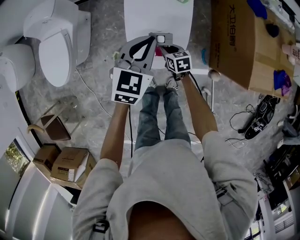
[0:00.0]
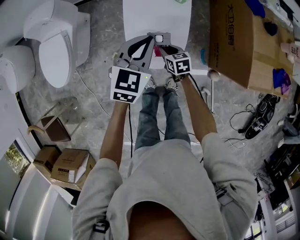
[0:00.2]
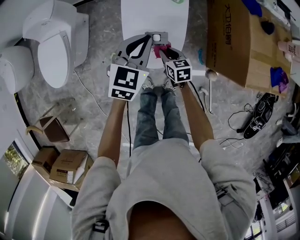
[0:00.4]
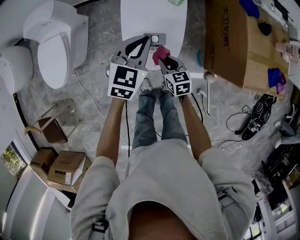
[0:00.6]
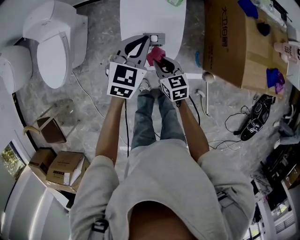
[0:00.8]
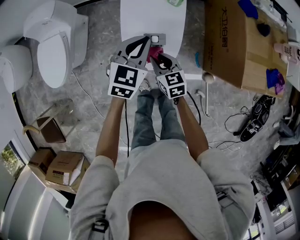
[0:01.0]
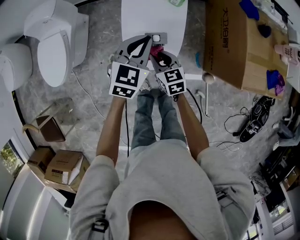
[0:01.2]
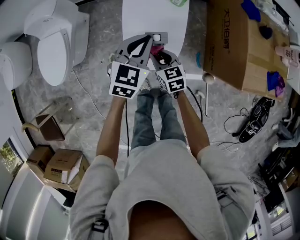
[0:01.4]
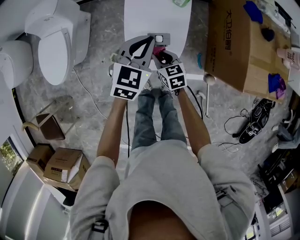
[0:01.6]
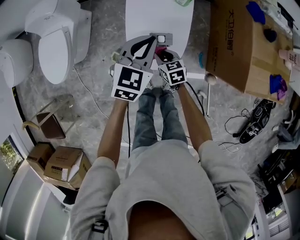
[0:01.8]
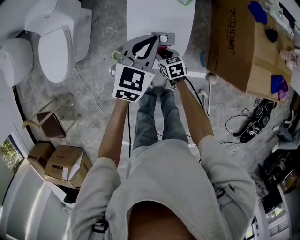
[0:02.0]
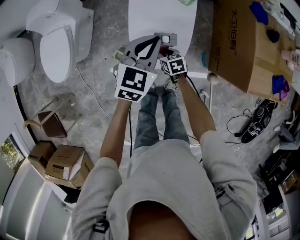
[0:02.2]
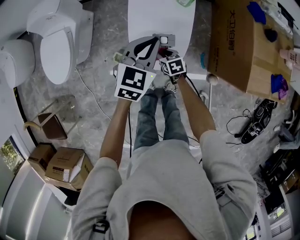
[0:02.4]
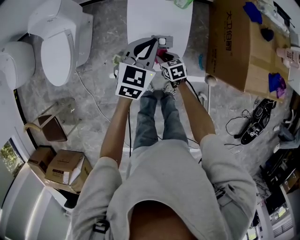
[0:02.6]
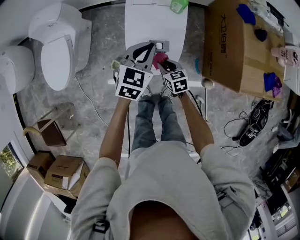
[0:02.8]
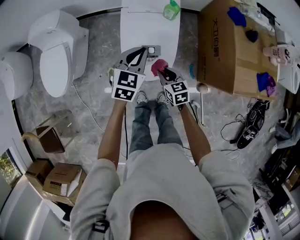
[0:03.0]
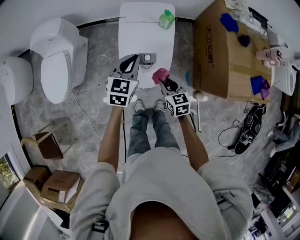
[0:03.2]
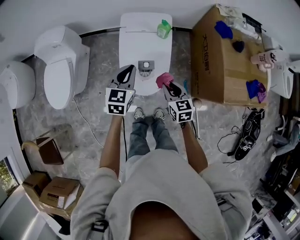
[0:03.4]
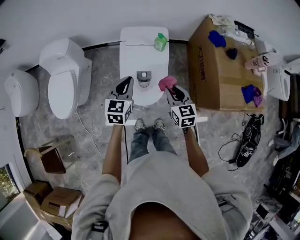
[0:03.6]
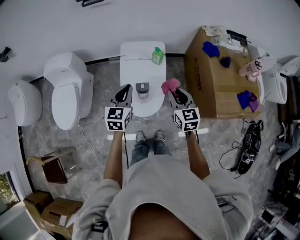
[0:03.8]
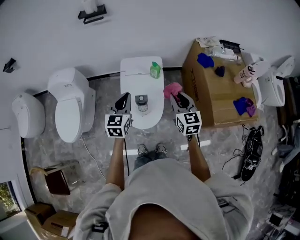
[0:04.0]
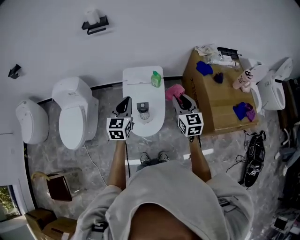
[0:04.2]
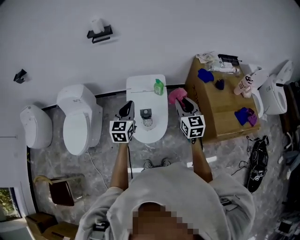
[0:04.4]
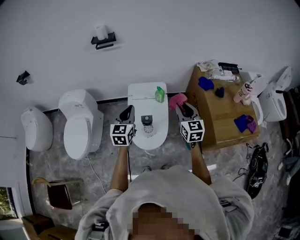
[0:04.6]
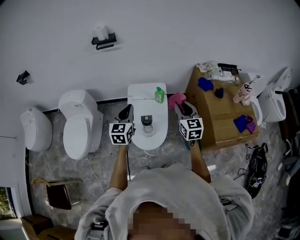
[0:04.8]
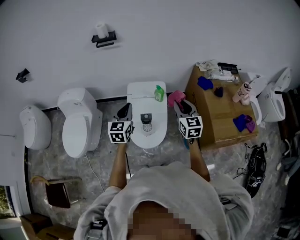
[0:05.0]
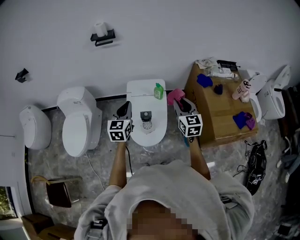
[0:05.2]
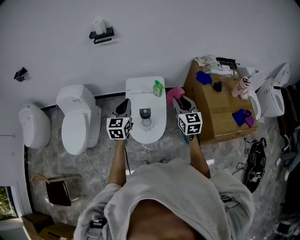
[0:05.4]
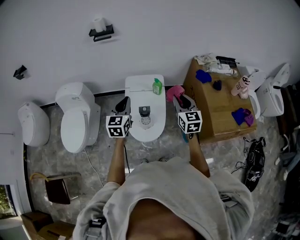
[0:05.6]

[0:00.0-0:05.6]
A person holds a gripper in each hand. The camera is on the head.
0:00.0 to 0:01.4: The right gripper travels upward by approximately 10 cm.
0:01.4 to 0:02.8: The right gripper travels downward by approximately 5 cm.
0:02.8 to 0:04.2: The right gripper travels upward and to the right by some 35 cm, and changes its angle by some 40 degrees; the left gripper travels upward by approximately 15 cm, and swivels some 20 degrees.
0:04.2 to 0:05.6: The grippers stay close to where they were, moving slightly.

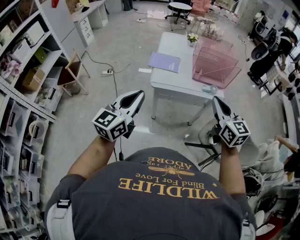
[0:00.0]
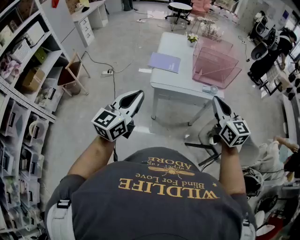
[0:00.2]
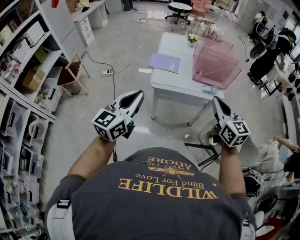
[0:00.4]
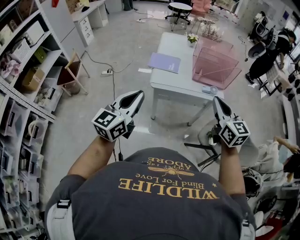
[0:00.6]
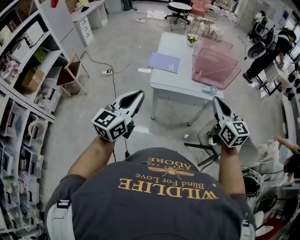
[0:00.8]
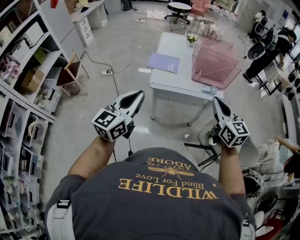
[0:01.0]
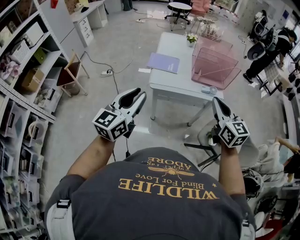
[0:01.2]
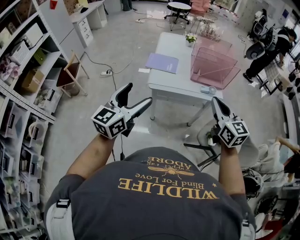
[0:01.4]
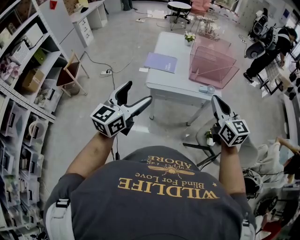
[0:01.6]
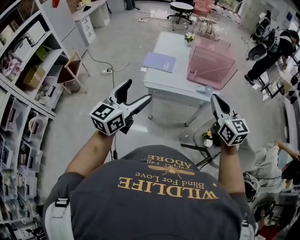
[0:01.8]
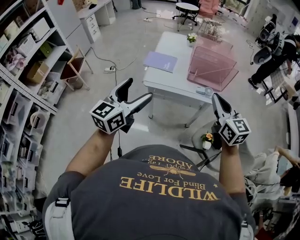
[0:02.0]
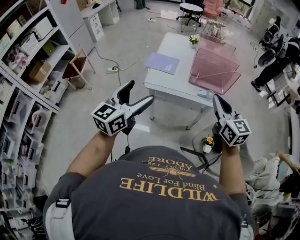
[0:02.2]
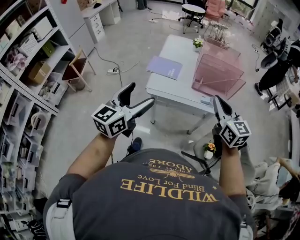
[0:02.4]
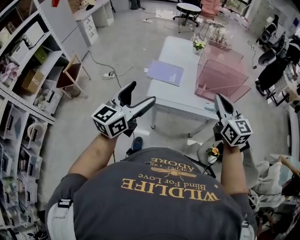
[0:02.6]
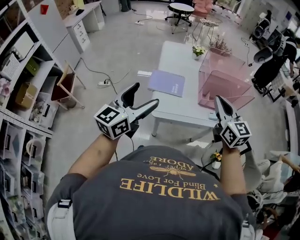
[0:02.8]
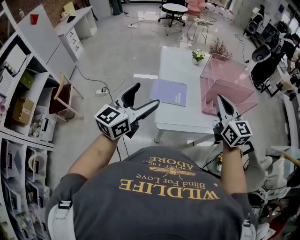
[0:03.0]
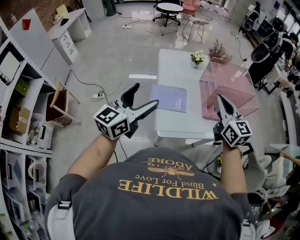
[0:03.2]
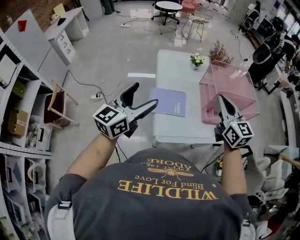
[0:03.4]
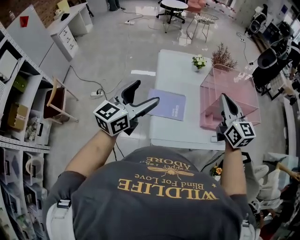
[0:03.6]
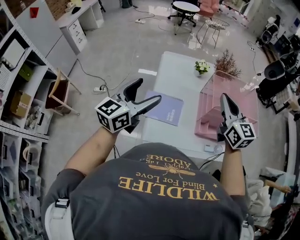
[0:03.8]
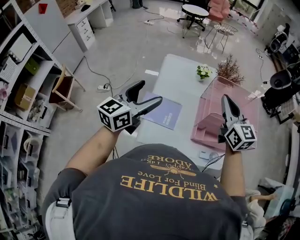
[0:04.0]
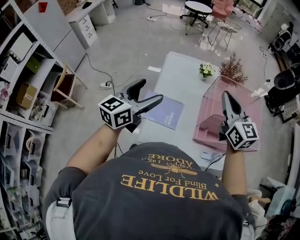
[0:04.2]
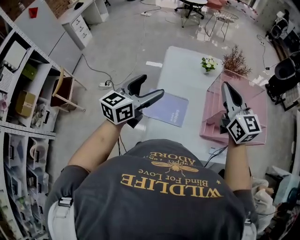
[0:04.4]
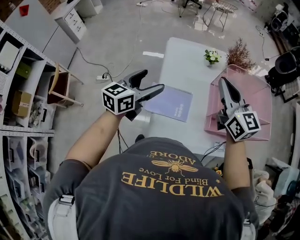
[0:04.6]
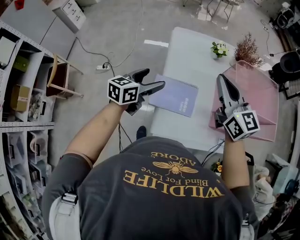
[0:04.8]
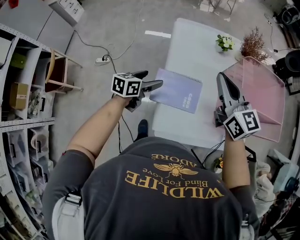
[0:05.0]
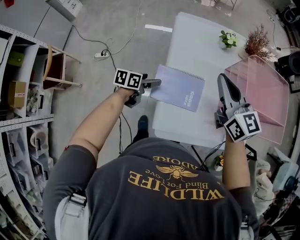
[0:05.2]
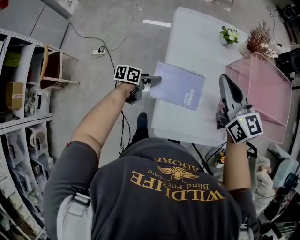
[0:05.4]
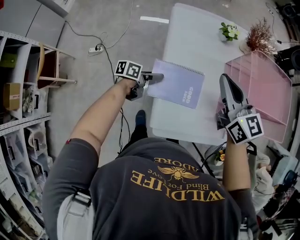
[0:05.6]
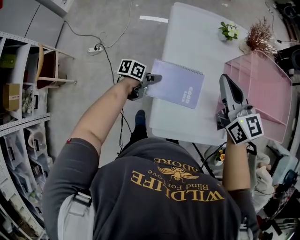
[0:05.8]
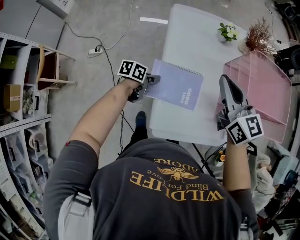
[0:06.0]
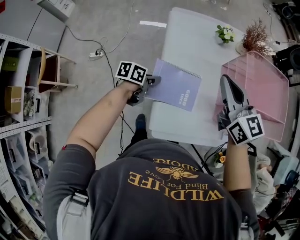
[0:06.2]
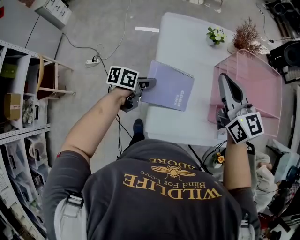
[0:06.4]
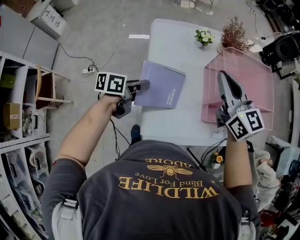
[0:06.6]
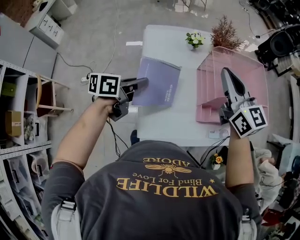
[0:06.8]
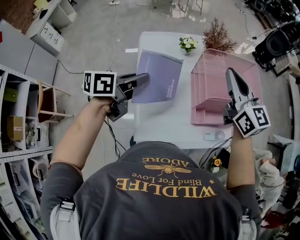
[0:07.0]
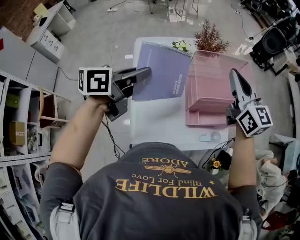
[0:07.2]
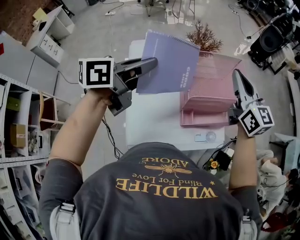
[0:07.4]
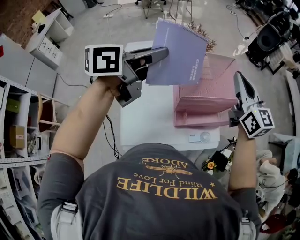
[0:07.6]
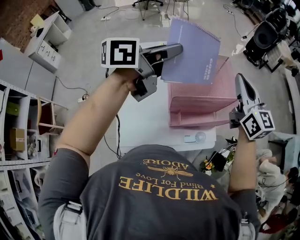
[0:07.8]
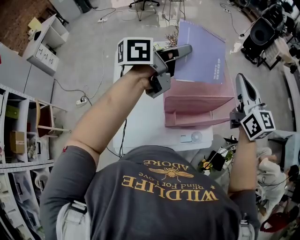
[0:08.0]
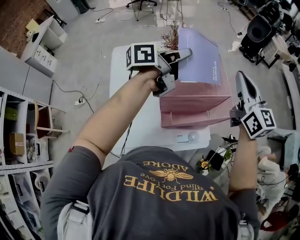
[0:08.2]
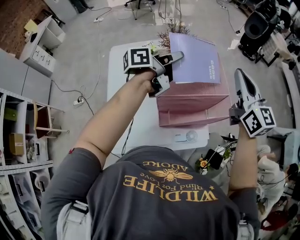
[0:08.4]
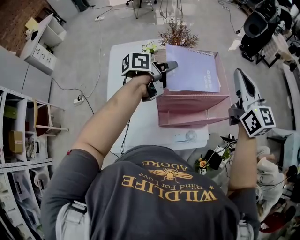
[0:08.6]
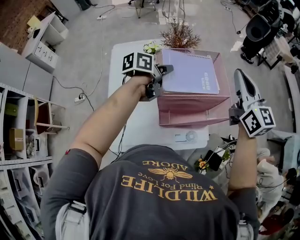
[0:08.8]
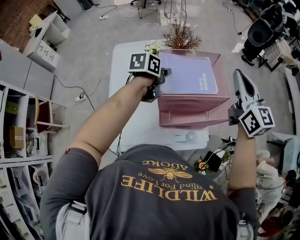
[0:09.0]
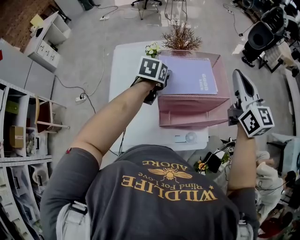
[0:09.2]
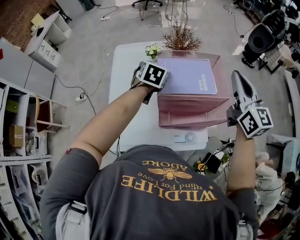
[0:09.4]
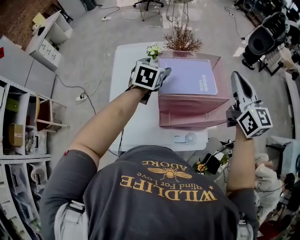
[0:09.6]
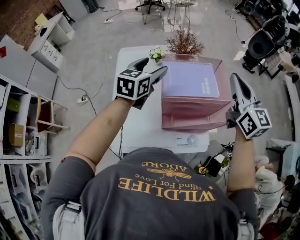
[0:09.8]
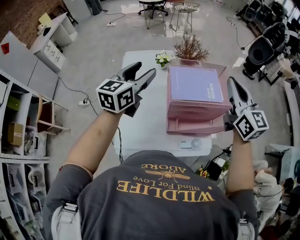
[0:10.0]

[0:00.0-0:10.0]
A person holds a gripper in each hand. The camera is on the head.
0:00.0 to 0:01.4: The left gripper opens up.
0:01.4 to 0:02.8: The two grippers go about 20 cm forward.
0:02.8 to 0:04.2: Both grippers move forward, roughly 30 cm.
0:04.2 to 0:05.8: The left gripper moves downward, roughly 40 cm, swivels roughly 60 degrees, and closes. The right gripper shifts some 20 cm to the left and downward.
0:05.8 to 0:07.2: The left gripper shifts about 40 cm upward, and rotates approximately 30 degrees; the right gripper travels to the right and upward by roughly 25 cm.
0:07.2 to 0:08.6: The right gripper shifts about 20 cm to the right, while the left gripper shifts some 30 cm to the right and forward, and swivels approximately 20 degrees.
0:08.6 to 0:10.0: The right gripper moves to the left, roughly 5 cm; the left gripper shifts approximately 20 cm to the left, upward and backward, rotates around the line of its fingers by approximately 50 degrees, clockwise from behind, and opens.

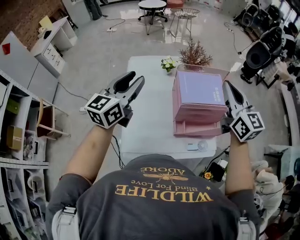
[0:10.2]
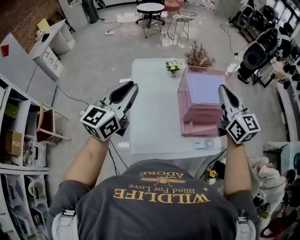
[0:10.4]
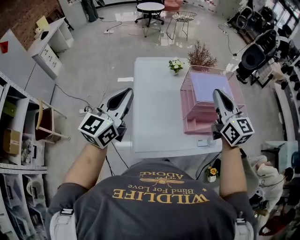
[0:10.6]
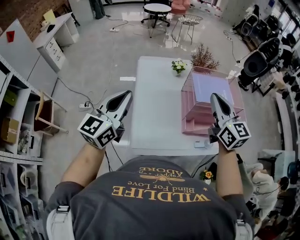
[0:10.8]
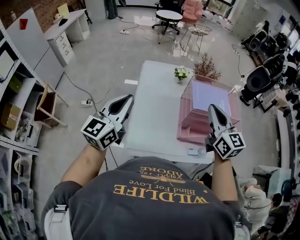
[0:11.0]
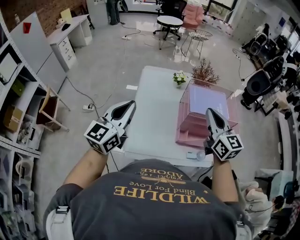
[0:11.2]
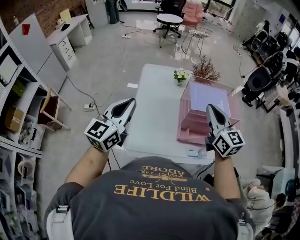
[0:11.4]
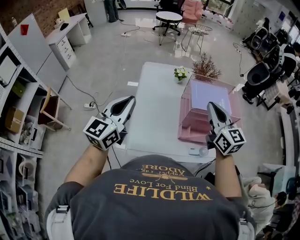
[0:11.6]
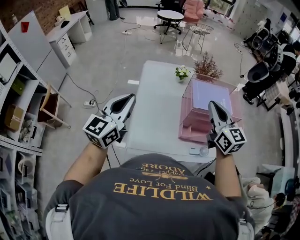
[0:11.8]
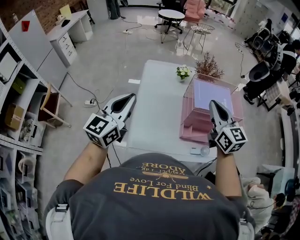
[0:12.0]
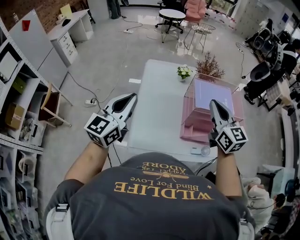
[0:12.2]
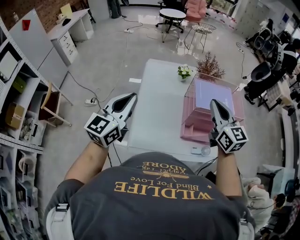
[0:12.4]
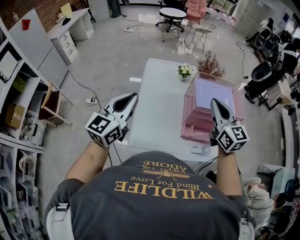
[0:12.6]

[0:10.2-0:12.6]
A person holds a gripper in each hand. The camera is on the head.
0:10.2 to 0:11.4: The left gripper moves backward and to the left, some 15 cm, and closes, while the right gripper moves to the left and backward, some 10 cm.
0:11.4 to 0:12.6: There are only small adjustments of the grippers.

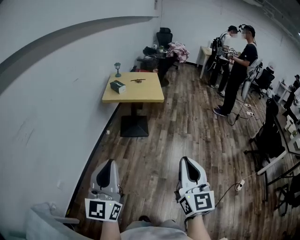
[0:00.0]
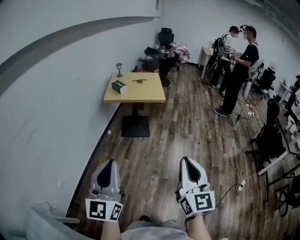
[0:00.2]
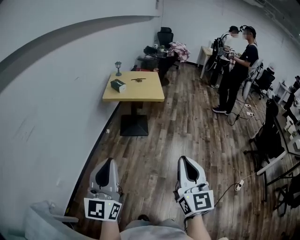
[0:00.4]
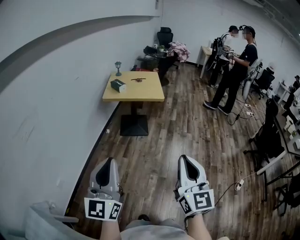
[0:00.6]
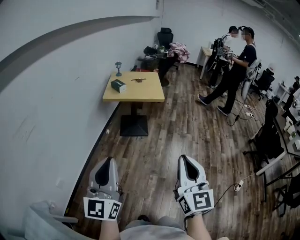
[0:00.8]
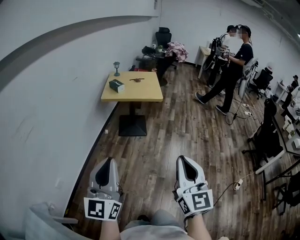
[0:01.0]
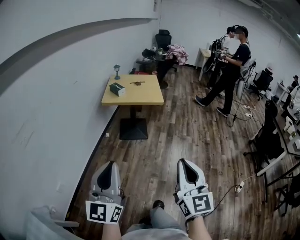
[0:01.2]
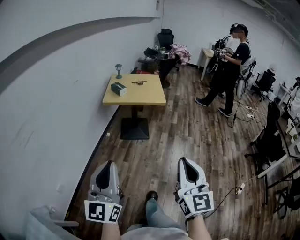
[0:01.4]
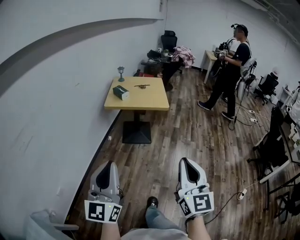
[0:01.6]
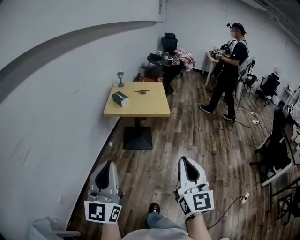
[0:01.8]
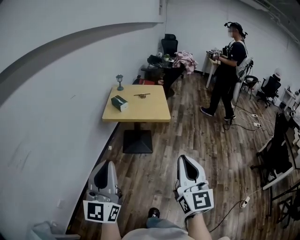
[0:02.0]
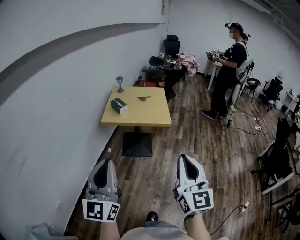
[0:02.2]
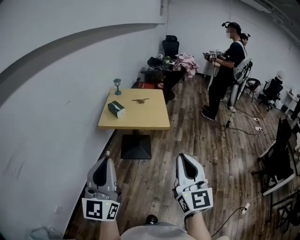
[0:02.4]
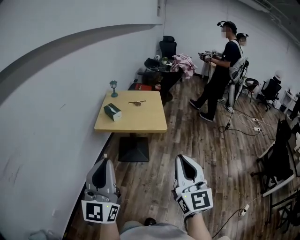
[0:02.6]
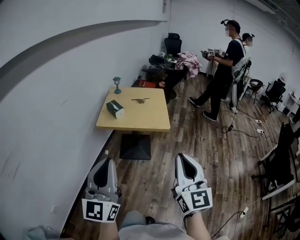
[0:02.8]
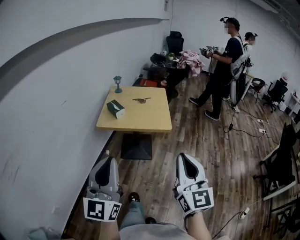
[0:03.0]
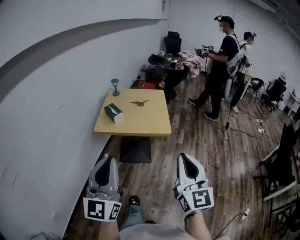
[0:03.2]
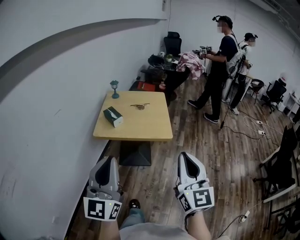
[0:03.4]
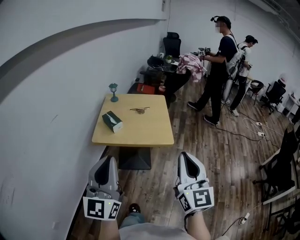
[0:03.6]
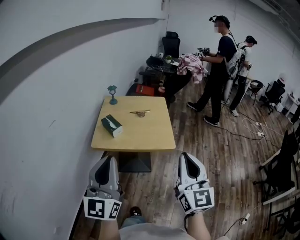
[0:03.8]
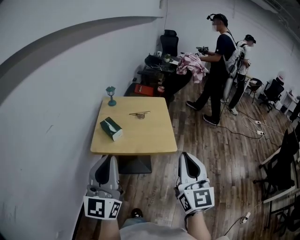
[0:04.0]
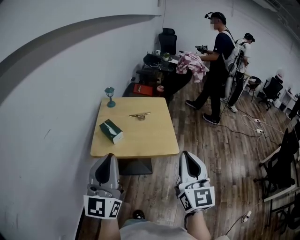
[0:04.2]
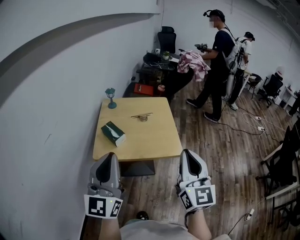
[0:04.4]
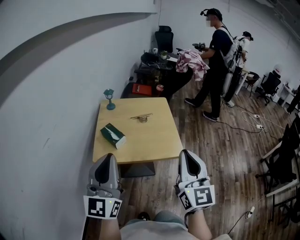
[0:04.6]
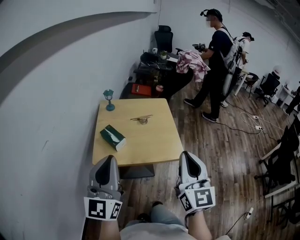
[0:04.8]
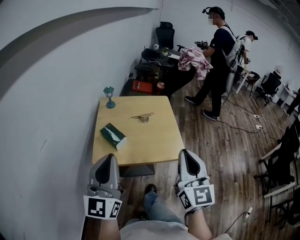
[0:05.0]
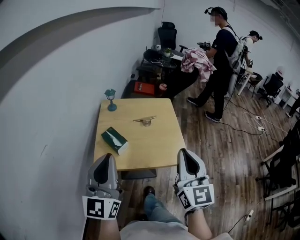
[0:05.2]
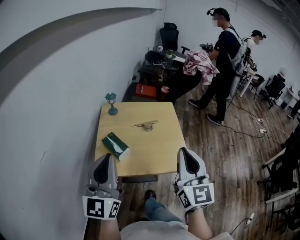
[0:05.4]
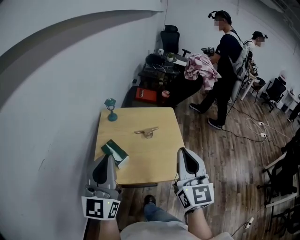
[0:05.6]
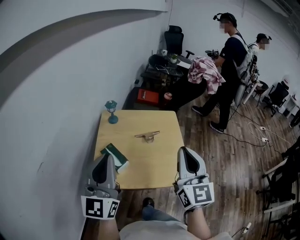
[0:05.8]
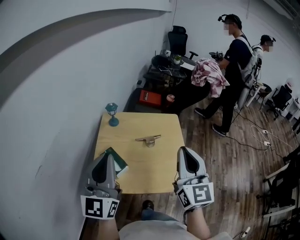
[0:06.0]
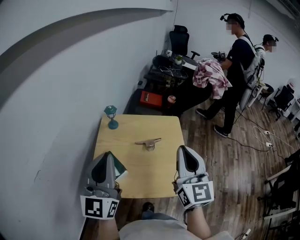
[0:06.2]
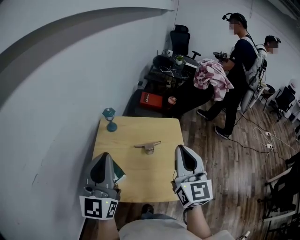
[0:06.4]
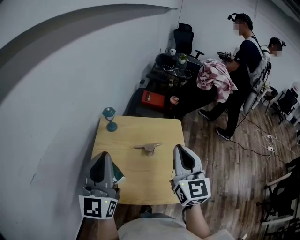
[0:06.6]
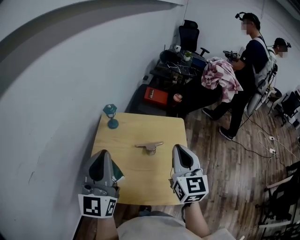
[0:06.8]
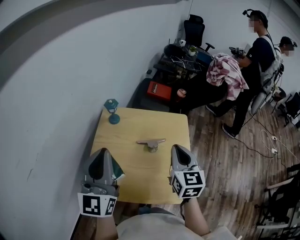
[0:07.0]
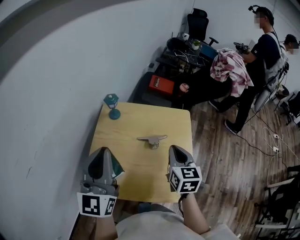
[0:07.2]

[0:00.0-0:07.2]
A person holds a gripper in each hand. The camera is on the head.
0:00.0 to 0:01.4: There are only small adjustments of the grippers.
0:01.4 to 0:02.8: The grippers both shift forward by some 30 cm.
0:02.8 to 0:04.4: The grippers both shift forward by about 30 cm.
0:04.4 to 0:05.8: Both grippers move forward, about 20 cm.
0:05.8 to 0:07.2: The right gripper goes some 25 cm forward and downward, and tips its fingers downward by approximately 30 degrees; the left gripper goes approximately 15 cm forward.
